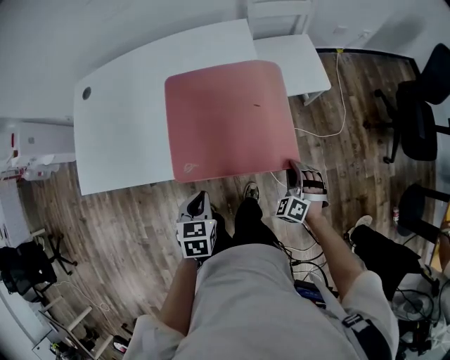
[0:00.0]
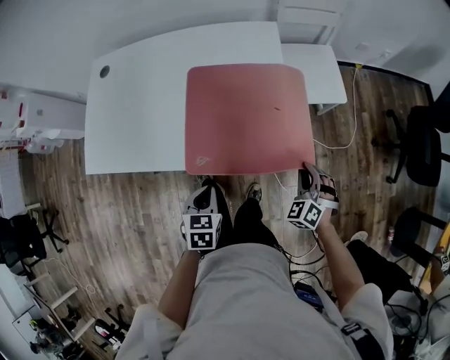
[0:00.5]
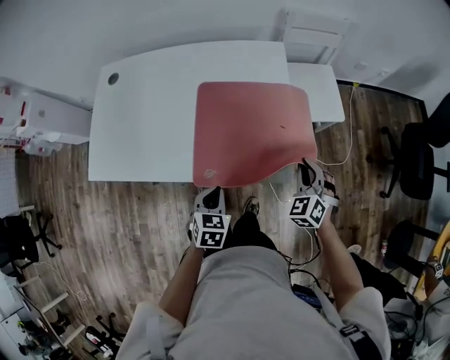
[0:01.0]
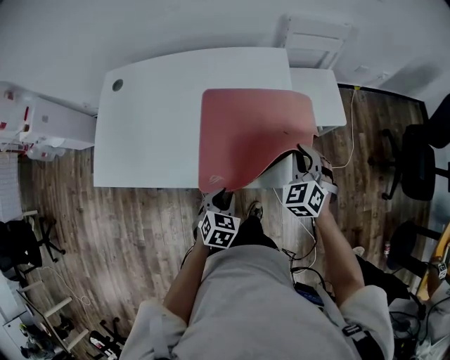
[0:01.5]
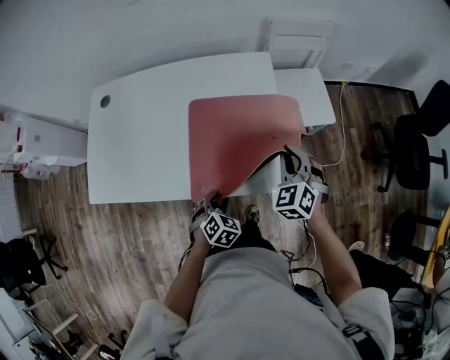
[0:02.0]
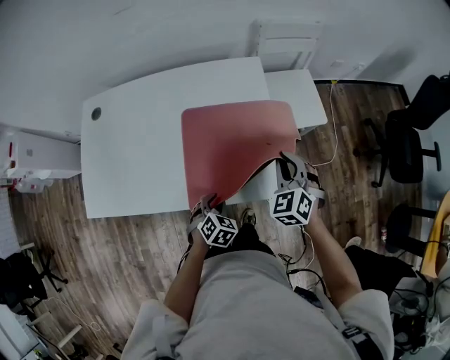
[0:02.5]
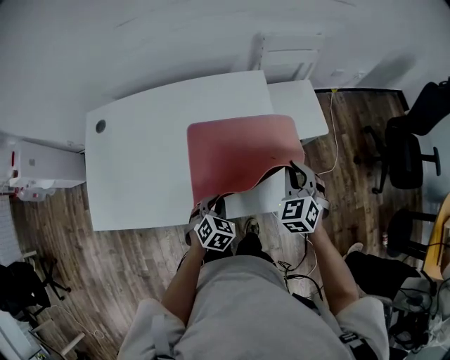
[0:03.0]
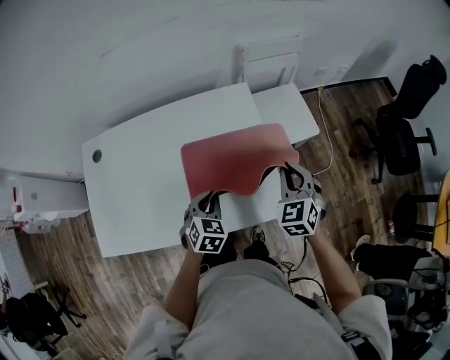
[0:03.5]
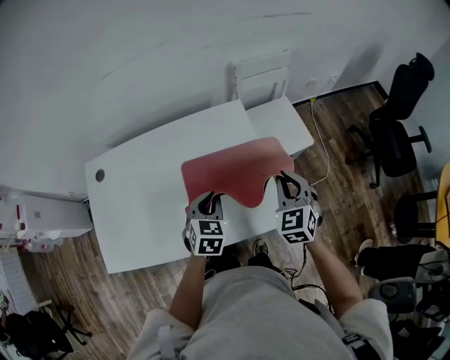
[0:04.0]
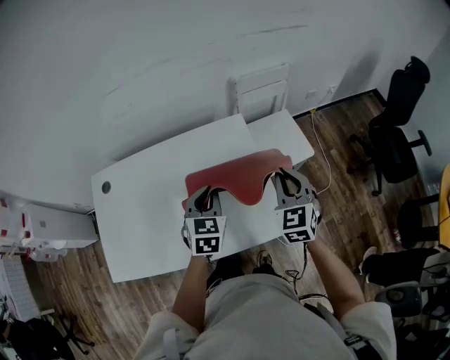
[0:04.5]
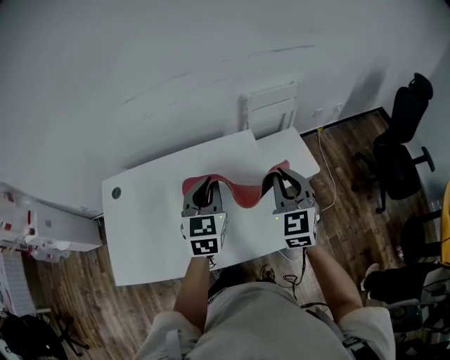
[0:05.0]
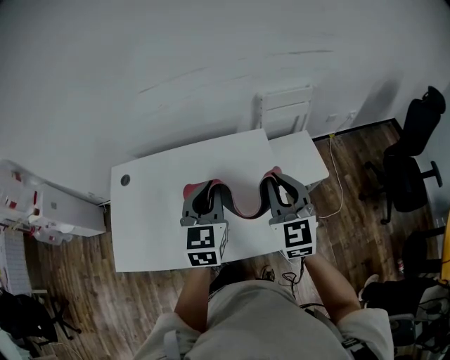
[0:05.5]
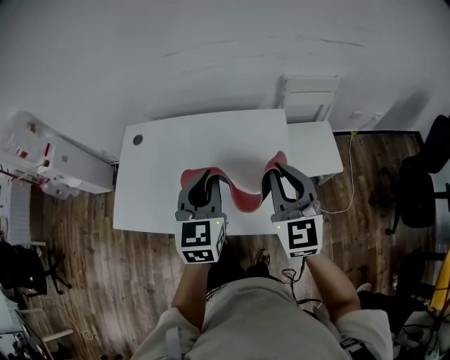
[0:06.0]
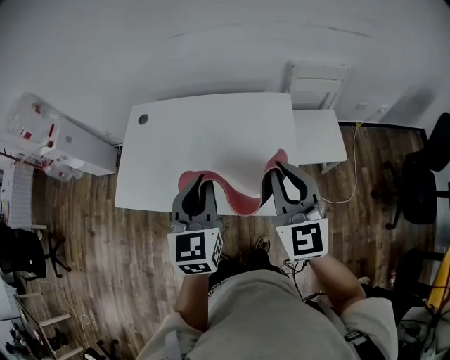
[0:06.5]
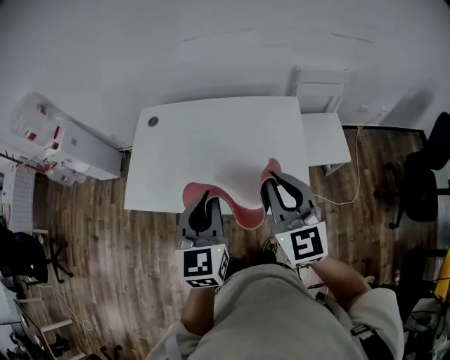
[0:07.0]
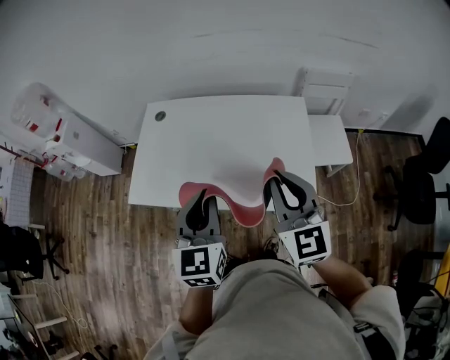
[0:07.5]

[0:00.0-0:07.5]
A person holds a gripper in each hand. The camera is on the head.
0:00.0 to 0:02.0: The right gripper moves upward, forward and to the left, some 25 cm, and turns by approximately 20 degrees; the left gripper goes approximately 5 cm downward, swivels approximately 30 degrees, and opens its fingers.
0:02.0 to 0:04.0: The left gripper shifts about 25 cm forward and upward, rotates roughly 20 degrees, and closes its fingers, while the right gripper is displaced upward by about 10 cm, and swivels some 20 degrees.
0:04.0 to 0:05.5: The right gripper moves upward and to the left, approximately 15 cm, and turns by roughly 30 degrees; the left gripper goes some 20 cm upward, and rotates approximately 30 degrees.
0:05.5 to 0:07.5: The grippers both shift backward and to the left by about 25 cm.

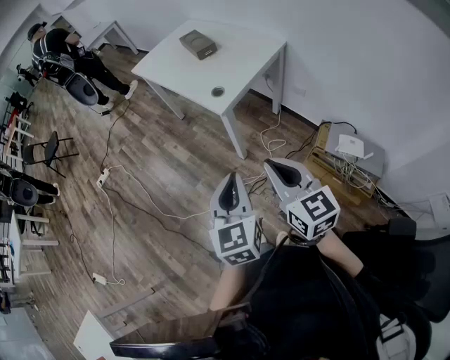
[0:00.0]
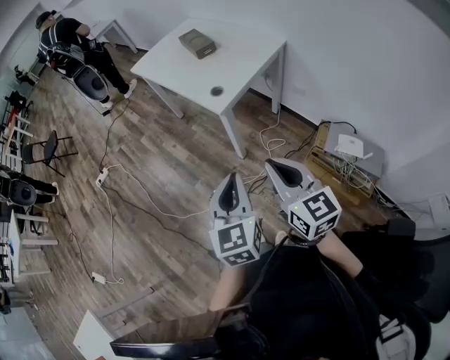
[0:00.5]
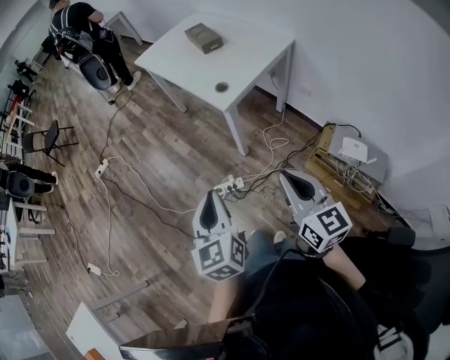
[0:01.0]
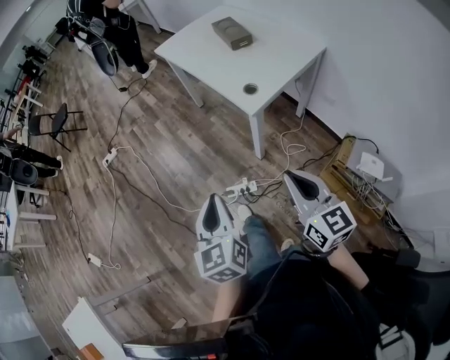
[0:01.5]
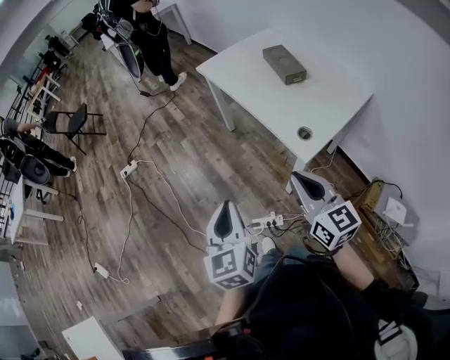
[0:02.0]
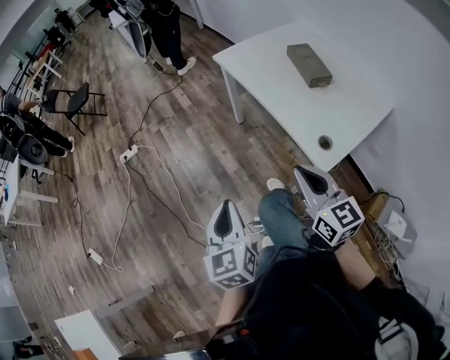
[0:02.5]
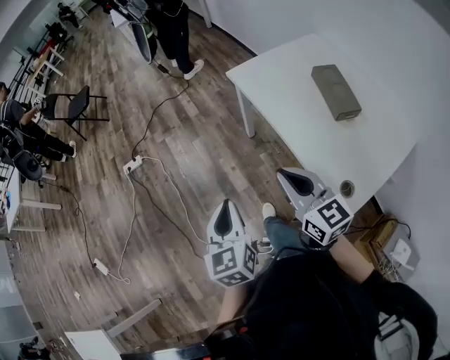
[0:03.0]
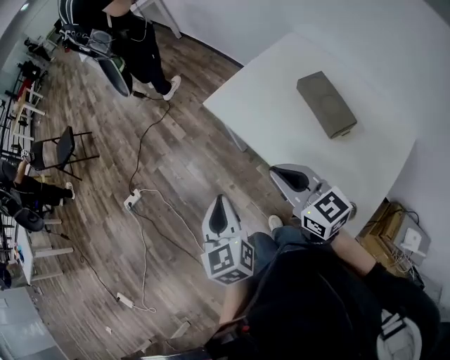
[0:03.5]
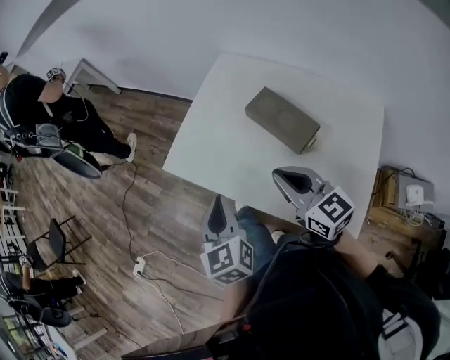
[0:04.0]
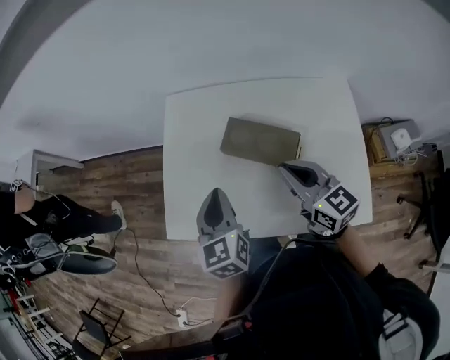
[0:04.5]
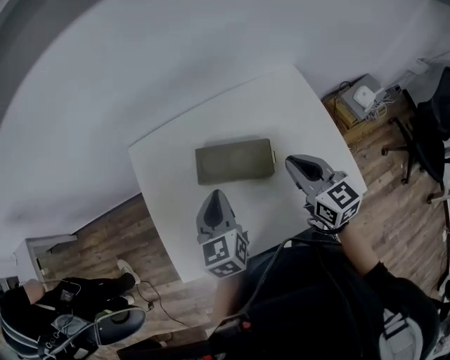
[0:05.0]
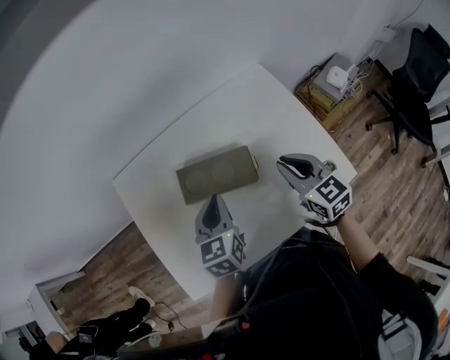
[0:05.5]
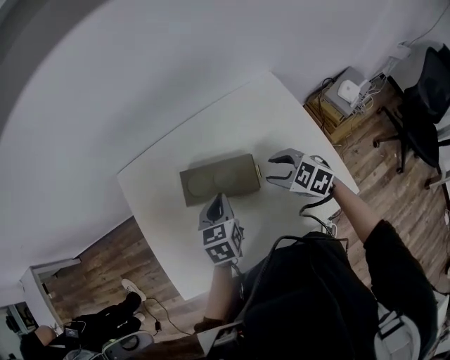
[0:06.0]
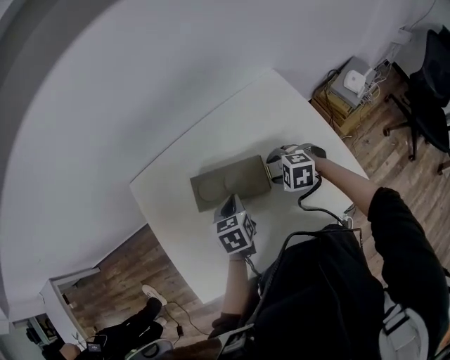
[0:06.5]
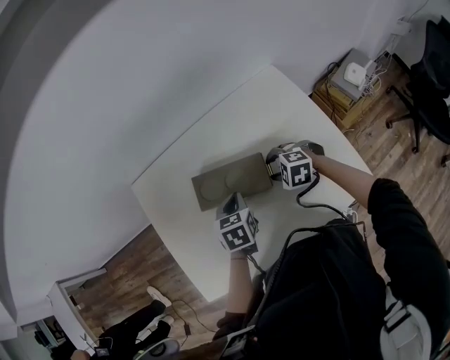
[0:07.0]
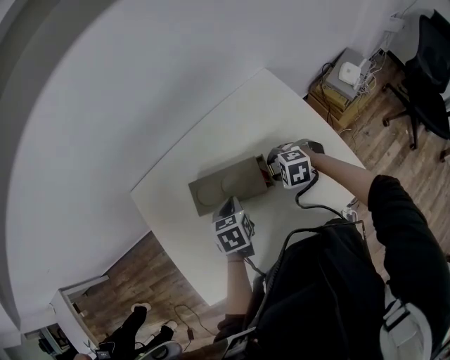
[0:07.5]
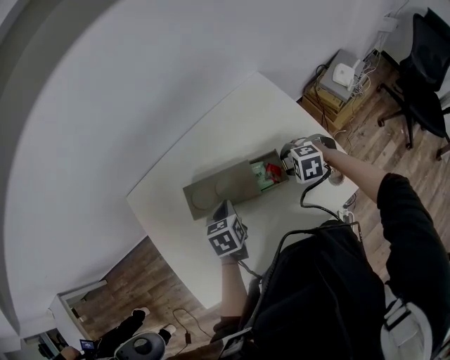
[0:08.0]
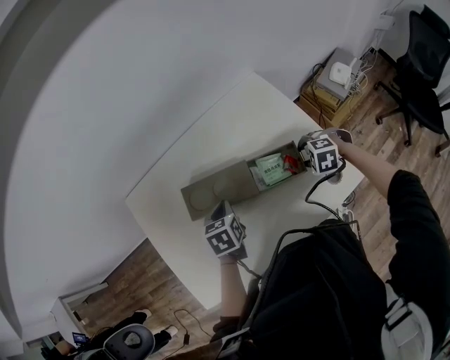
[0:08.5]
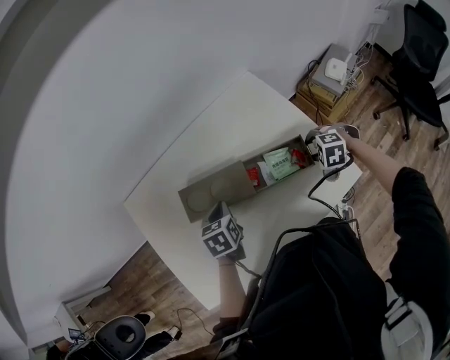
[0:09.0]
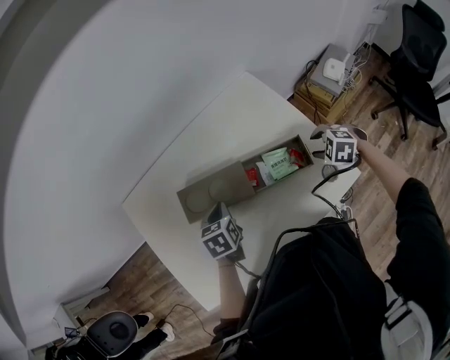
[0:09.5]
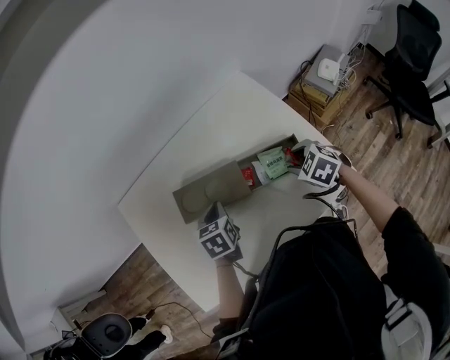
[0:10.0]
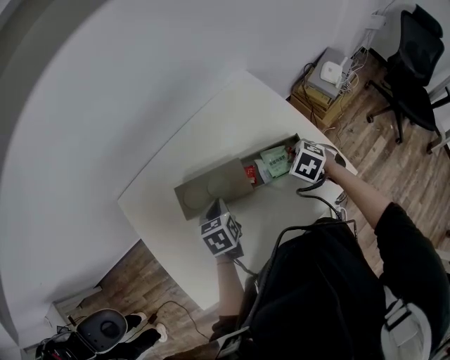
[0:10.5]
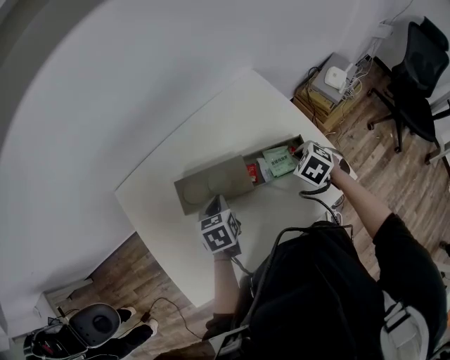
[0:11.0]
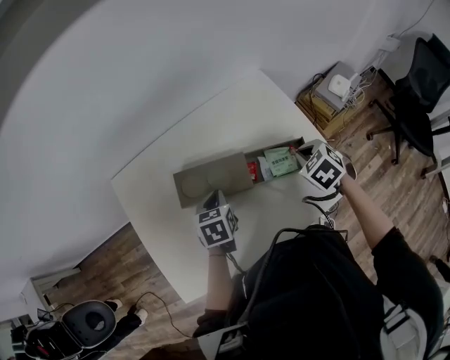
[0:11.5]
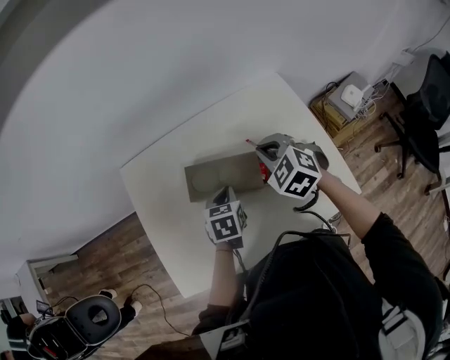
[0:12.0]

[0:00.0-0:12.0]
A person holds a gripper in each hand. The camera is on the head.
0:00.0 to 0:02.0: Both grippers travel together forward and to the left, some 30 cm.
0:02.0 to 0:04.0: Both grippers are carried roughly 60 cm. The left gripper rotates roughly 20 degrees.
0:04.0 to 0:06.0: The left gripper shifts by roughly 30 cm, and changes its angle by roughly 70 degrees. The right gripper ends up approximately 25 cm from where it was, tips its fingers downward by approximately 40 degrees, and opens its fingers.
0:06.0 to 0:08.0: The right gripper is displaced downward and to the right by roughly 10 cm, and rotates approximately 30 degrees.
0:08.0 to 0:10.0: The right gripper turns by some 40 degrees.
0:10.0 to 0:12.0: The right gripper goes about 20 cm to the left, upward and forward, rotates some 30 degrees, and closes up.

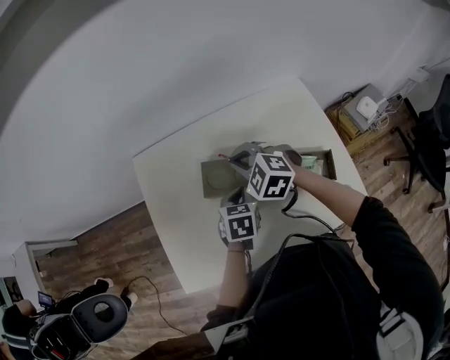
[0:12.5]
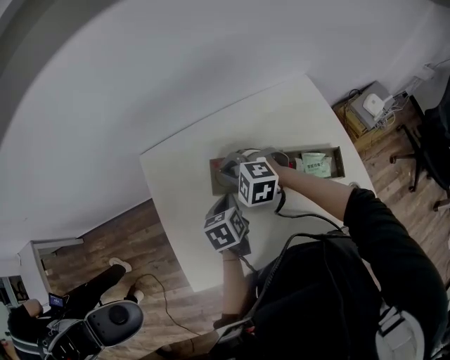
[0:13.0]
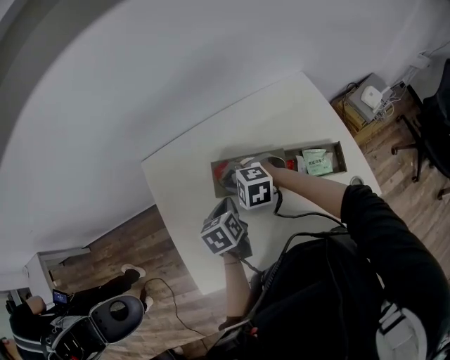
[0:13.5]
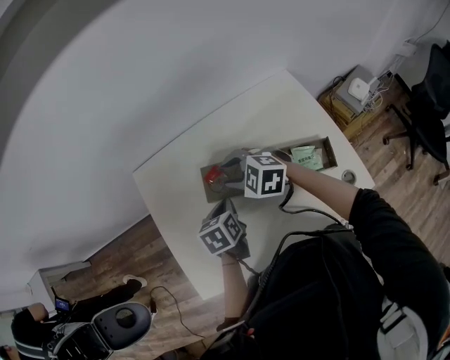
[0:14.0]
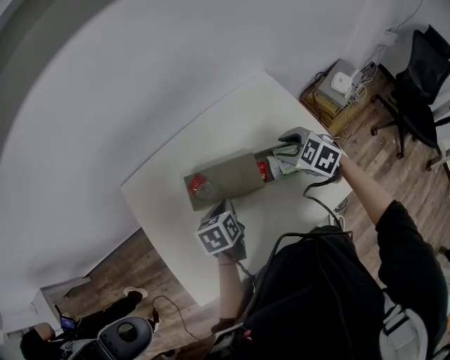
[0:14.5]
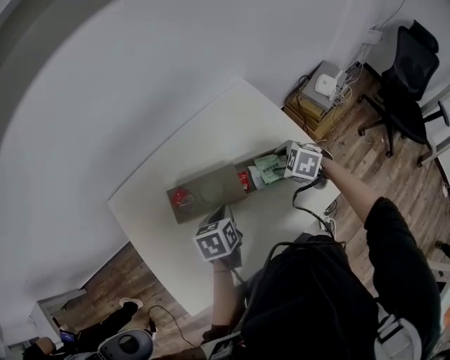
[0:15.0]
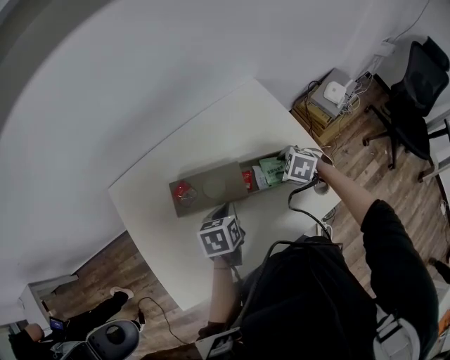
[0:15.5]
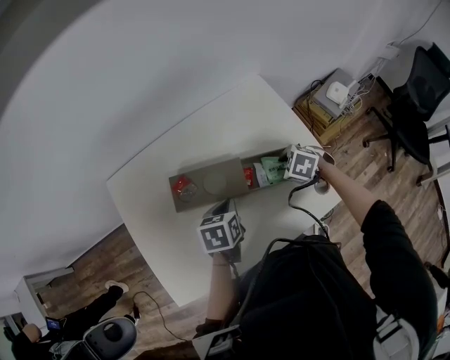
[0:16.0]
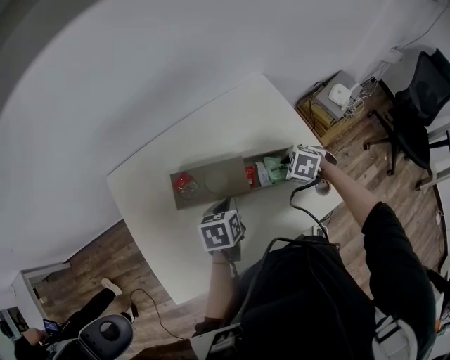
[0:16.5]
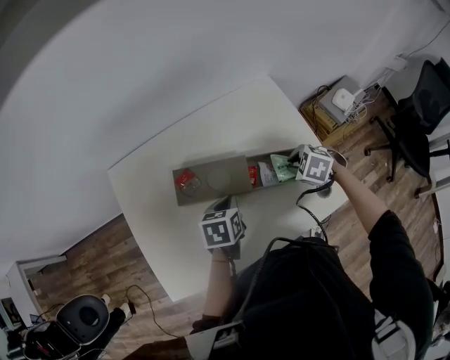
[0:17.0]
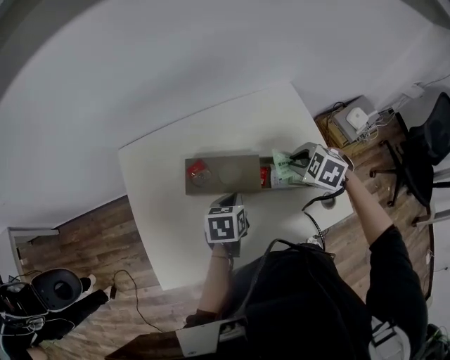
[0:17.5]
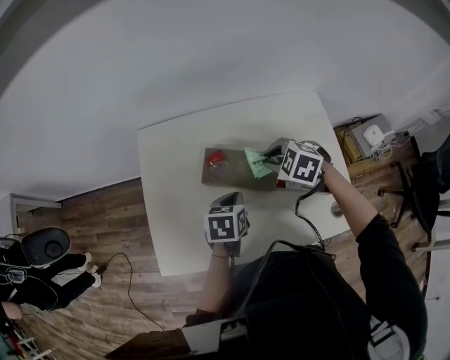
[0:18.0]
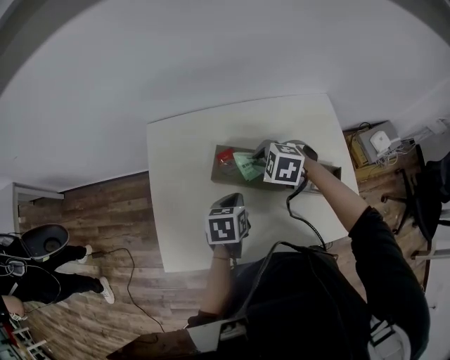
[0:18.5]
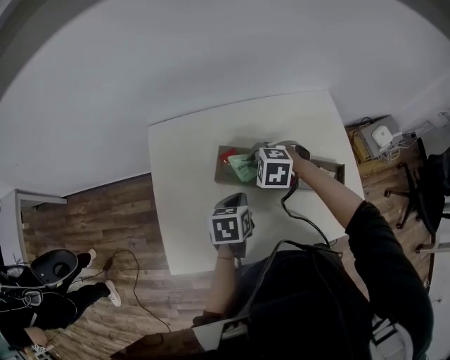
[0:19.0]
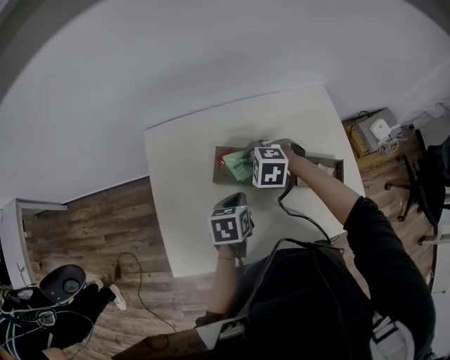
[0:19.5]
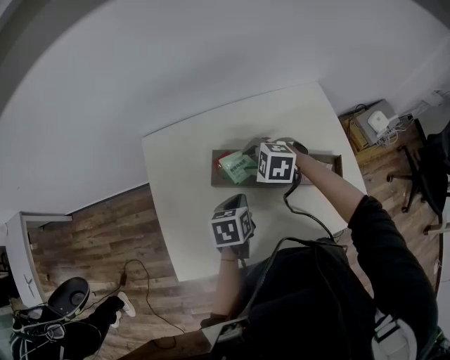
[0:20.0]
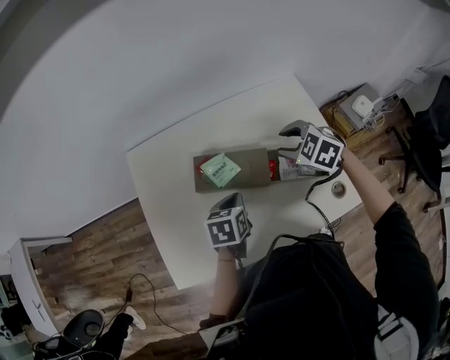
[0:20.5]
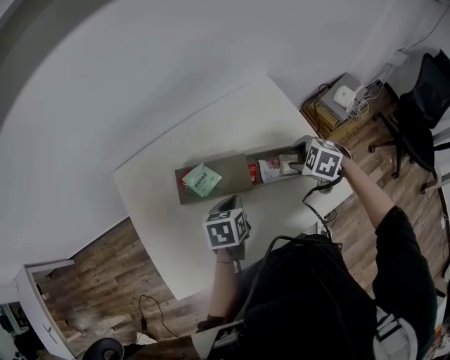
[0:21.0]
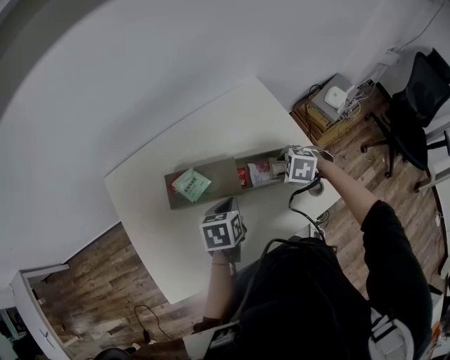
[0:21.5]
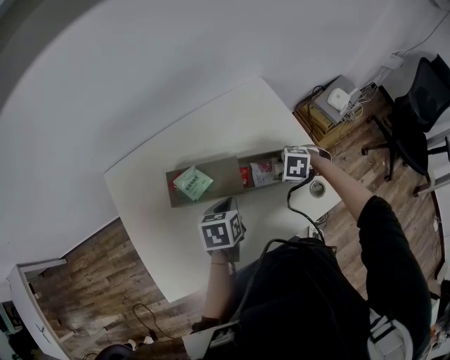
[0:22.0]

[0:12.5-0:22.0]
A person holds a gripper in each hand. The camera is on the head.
0:12.5 to 0:14.5: The right gripper heads to the right and backward, covering about 20 cm, swivels some 30 degrees, and opens up. The left gripper reaches roughly 10 cm to the left, then returns.
0:14.5 to 0:16.5: The right gripper is displaced downward by about 10 cm, and rotates roughly 30 degrees; the left gripper ends up about 5 cm from where it was.
0:16.5 to 0:18.0: The right gripper moves some 20 cm, and rotates approximately 30 degrees. The left gripper ends up about 5 cm from where it was.
0:18.0 to 0:20.0: The right gripper heads to the left, covering approximately 10 cm, and opens.
0:20.0 to 0:22.0: The right gripper changes place by some 30 cm, and swivels about 30 degrees, while the left gripper ends up approximately 10 cm from where it was.
